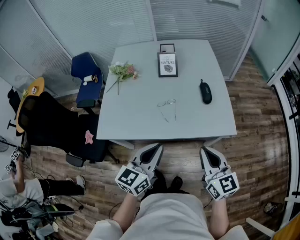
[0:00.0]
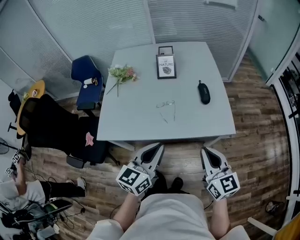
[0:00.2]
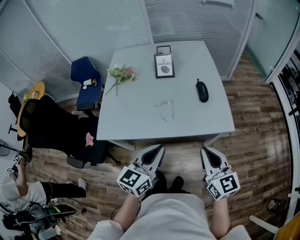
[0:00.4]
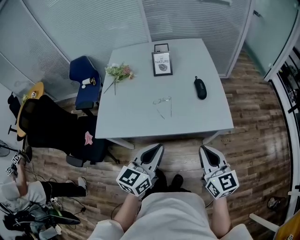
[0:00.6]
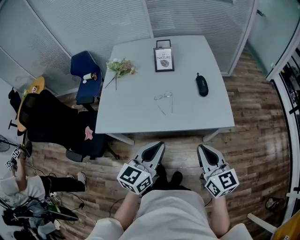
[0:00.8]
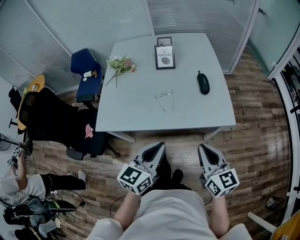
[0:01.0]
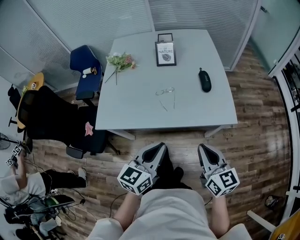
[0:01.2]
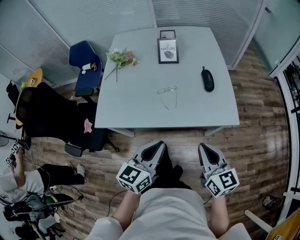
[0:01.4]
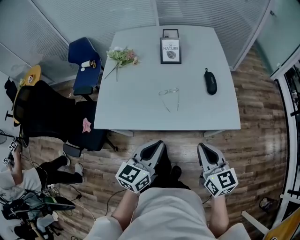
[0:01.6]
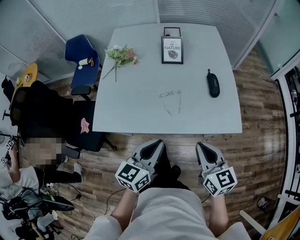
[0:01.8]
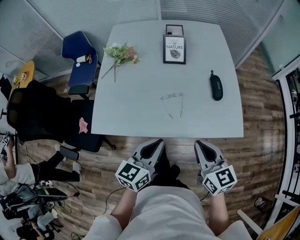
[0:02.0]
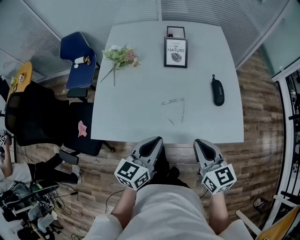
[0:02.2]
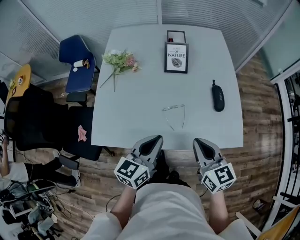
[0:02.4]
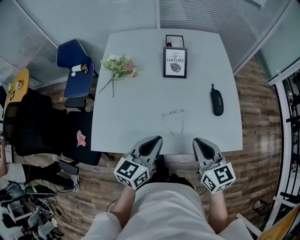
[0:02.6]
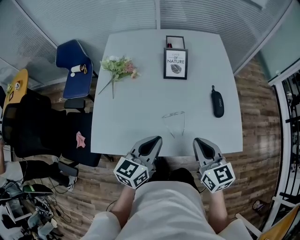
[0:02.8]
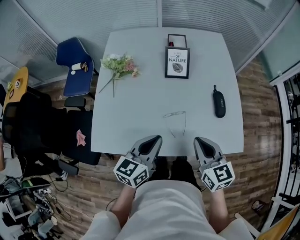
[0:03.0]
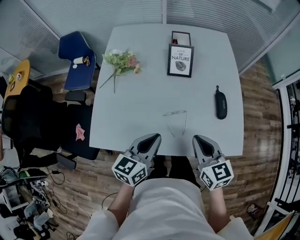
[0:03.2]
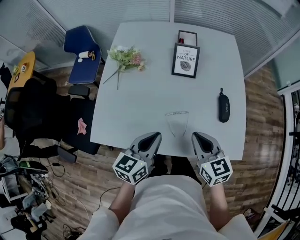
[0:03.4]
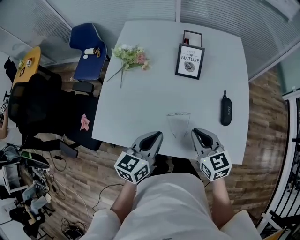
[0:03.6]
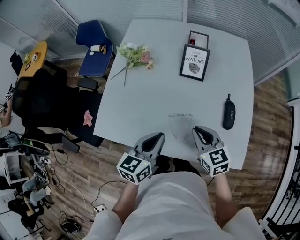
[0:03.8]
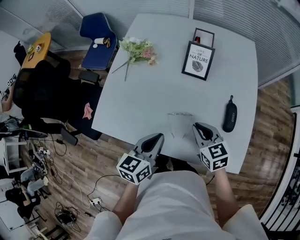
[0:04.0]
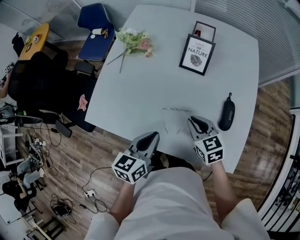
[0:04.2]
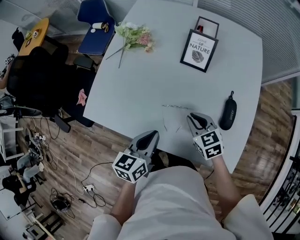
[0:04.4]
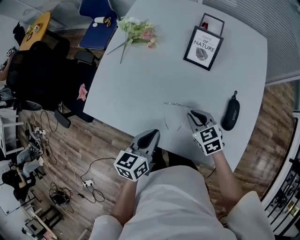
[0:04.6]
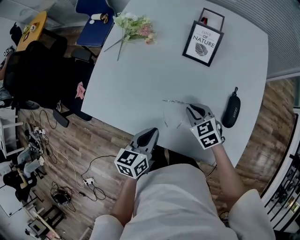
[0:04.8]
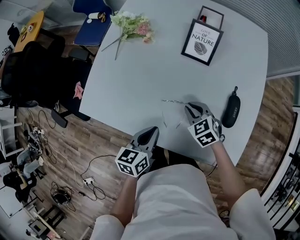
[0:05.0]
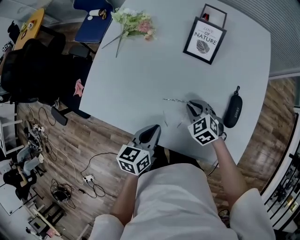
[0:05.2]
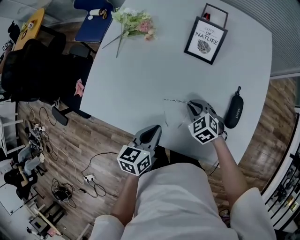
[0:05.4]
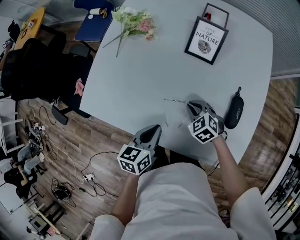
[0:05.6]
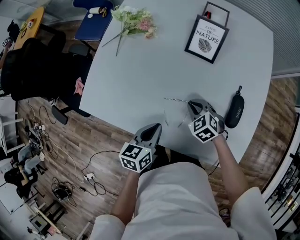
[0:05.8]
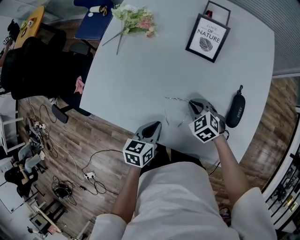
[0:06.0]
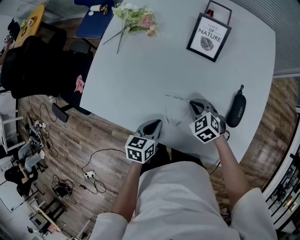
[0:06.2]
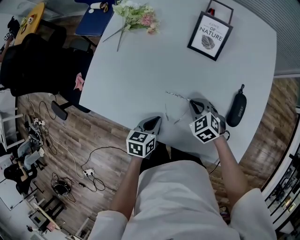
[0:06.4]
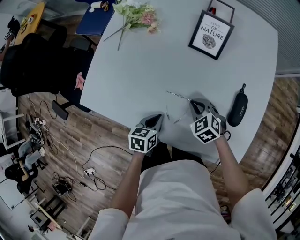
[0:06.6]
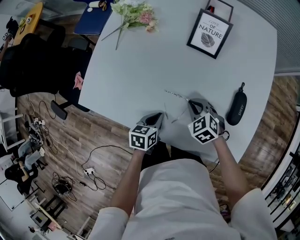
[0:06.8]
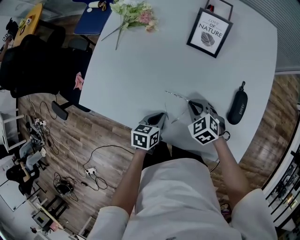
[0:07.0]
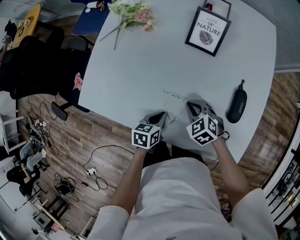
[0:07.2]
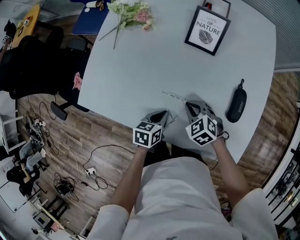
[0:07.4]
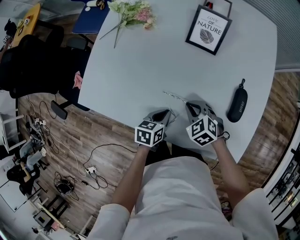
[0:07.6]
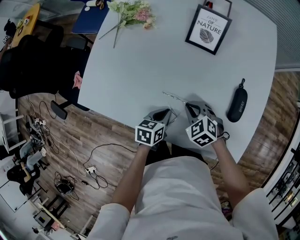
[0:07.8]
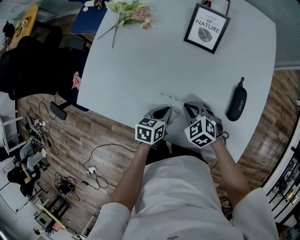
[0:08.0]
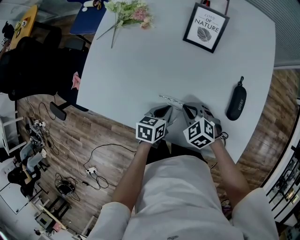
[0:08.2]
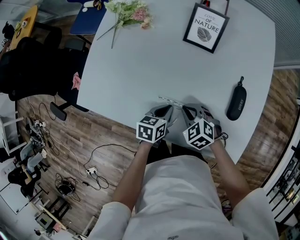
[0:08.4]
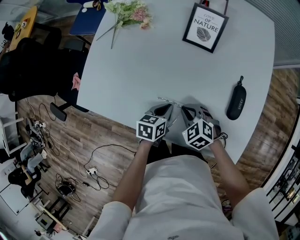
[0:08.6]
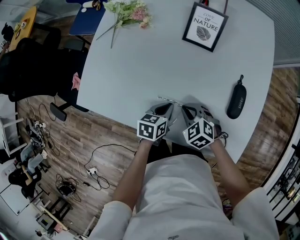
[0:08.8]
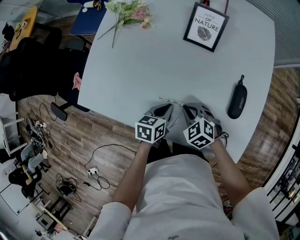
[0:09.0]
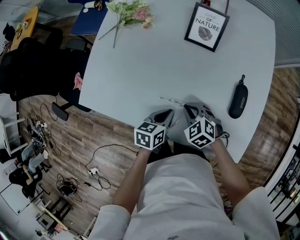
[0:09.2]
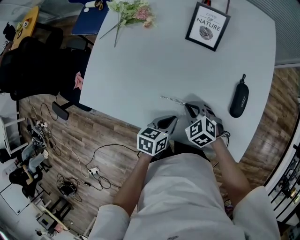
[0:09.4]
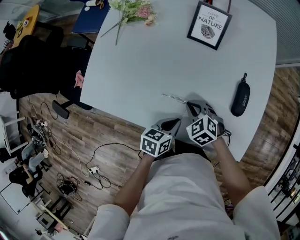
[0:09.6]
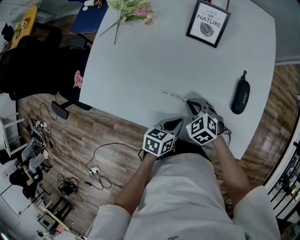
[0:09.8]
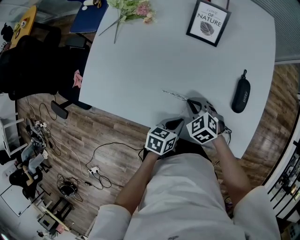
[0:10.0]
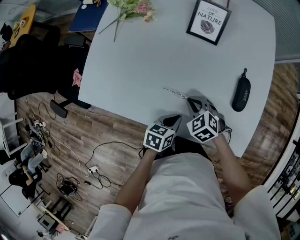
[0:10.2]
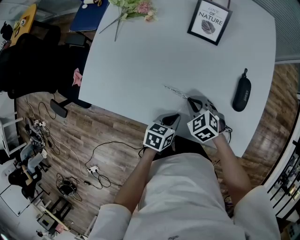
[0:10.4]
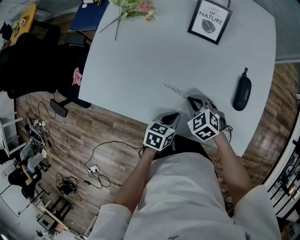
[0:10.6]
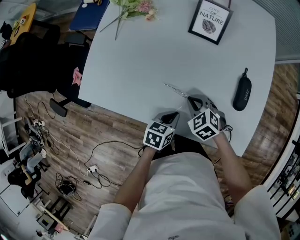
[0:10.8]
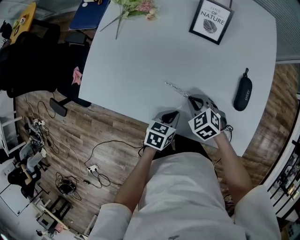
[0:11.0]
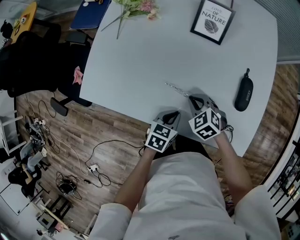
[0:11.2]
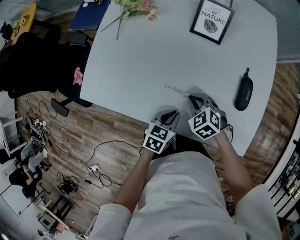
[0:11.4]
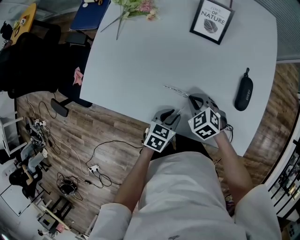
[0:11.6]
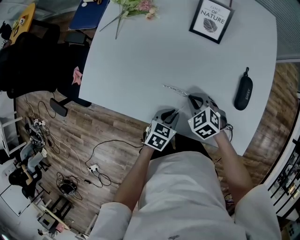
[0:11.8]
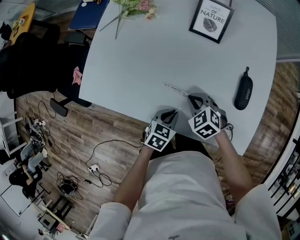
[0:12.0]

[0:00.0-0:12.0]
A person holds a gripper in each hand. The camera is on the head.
0:00.0 to 0:01.6: There are only small adjustments of the grippers.
0:01.6 to 0:03.0: Both grippers travel together forward, some 20 cm.
0:03.0 to 0:04.4: The left gripper is displaced downward by some 5 cm, and turns by approximately 30 degrees. Meanwhile the right gripper is displaced downward and forward by some 20 cm, and turns by approximately 30 degrees.
0:04.4 to 0:06.0: The grippers both shift downward by about 10 cm. The right gripper rotates some 30 degrees.
0:06.0 to 0:07.6: The left gripper is displaced downward by approximately 5 cm.
0:07.6 to 0:09.0: The grippers move only a little.
0:09.0 to 0:10.4: The left gripper travels backward by about 10 cm.
0:10.4 to 0:12.0: The grippers make only small movements.

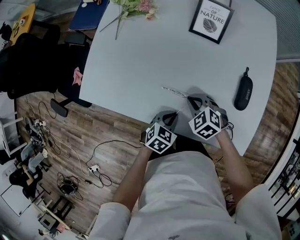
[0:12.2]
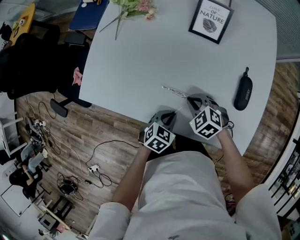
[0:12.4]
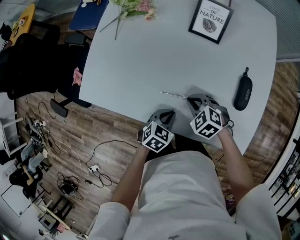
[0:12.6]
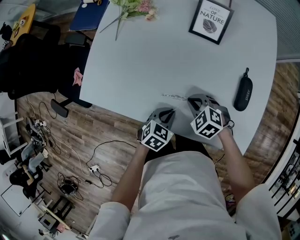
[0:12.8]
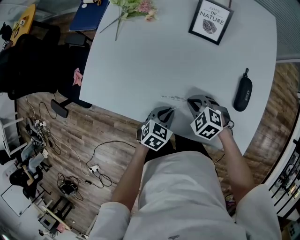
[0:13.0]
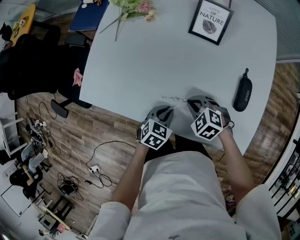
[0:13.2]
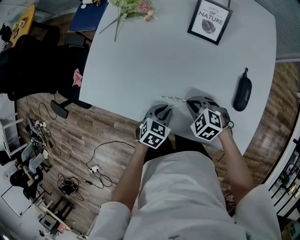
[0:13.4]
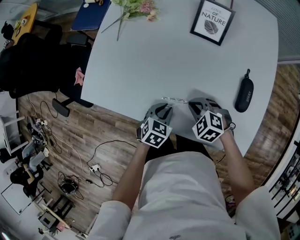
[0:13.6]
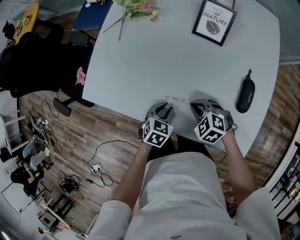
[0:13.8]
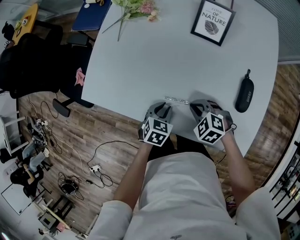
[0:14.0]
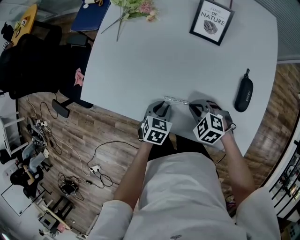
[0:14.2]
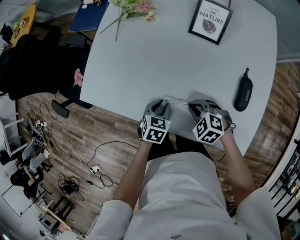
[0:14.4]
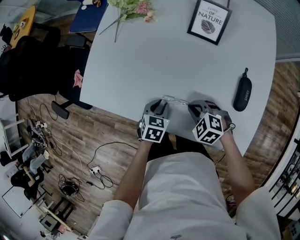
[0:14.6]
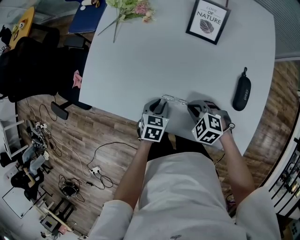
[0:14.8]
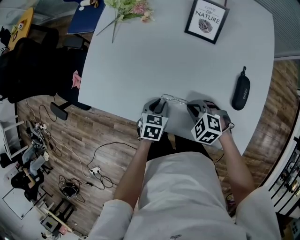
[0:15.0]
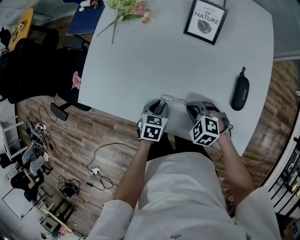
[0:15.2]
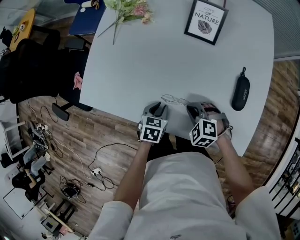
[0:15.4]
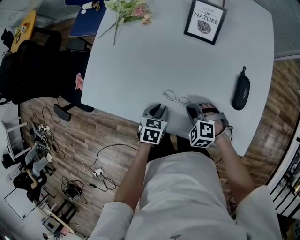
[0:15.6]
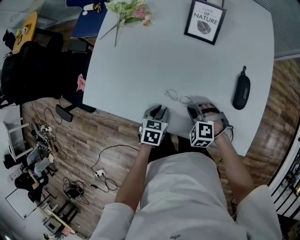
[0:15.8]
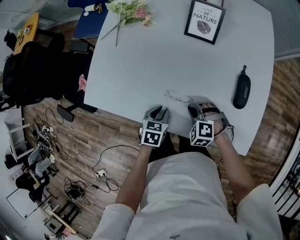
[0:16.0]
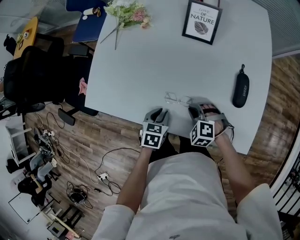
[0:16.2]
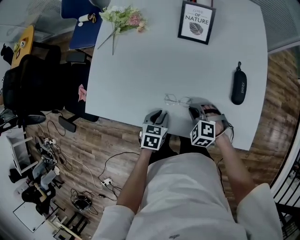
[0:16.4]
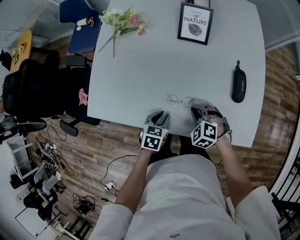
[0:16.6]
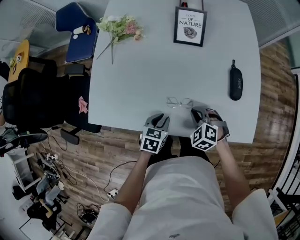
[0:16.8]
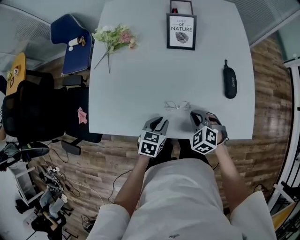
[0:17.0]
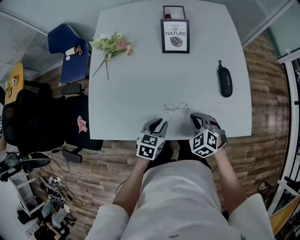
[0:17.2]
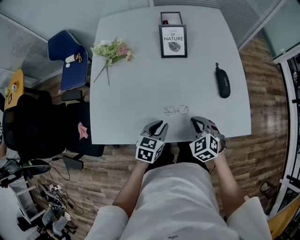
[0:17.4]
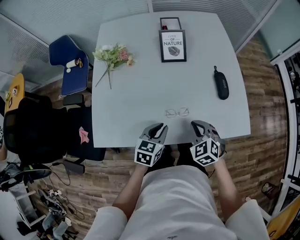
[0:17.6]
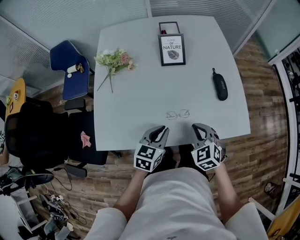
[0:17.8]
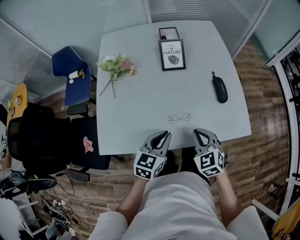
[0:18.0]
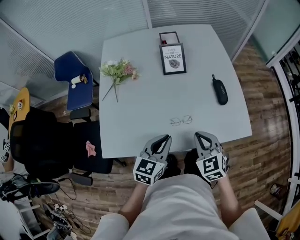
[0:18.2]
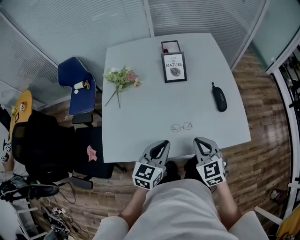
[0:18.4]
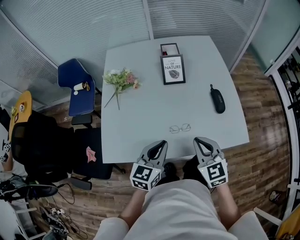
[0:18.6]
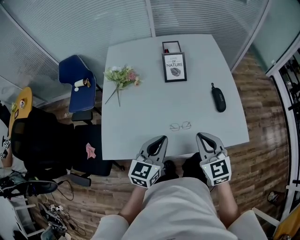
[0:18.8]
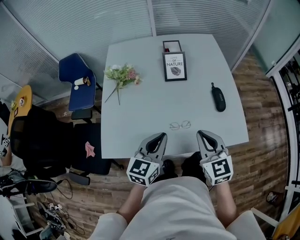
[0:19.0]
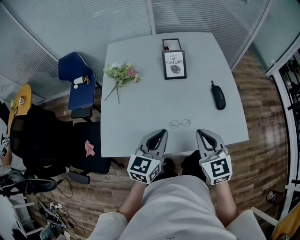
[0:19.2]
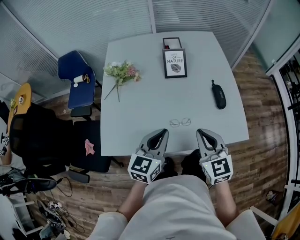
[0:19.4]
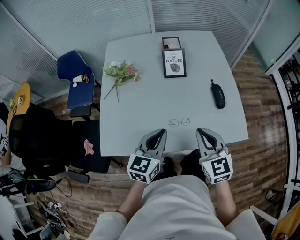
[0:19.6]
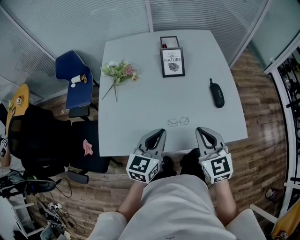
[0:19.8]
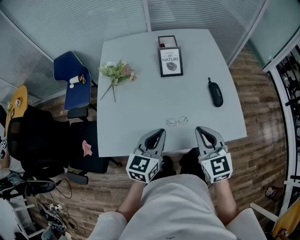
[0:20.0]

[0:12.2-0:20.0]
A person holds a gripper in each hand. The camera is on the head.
0:12.2 to 0:13.8: The left gripper moves roughly 5 cm.
0:13.8 to 0:15.4: The grippers stay close to where they were, moving slightly.
0:15.4 to 0:16.8: The right gripper rotates about 20 degrees.
0:16.8 to 0:18.4: The left gripper is displaced upward by about 20 cm, and tilts its fingers approximately 30 degrees upward. Meanwhile the right gripper moves upward and backward, some 20 cm, and swivels approximately 40 degrees.
0:18.4 to 0:20.0: The right gripper moves upward, some 5 cm.

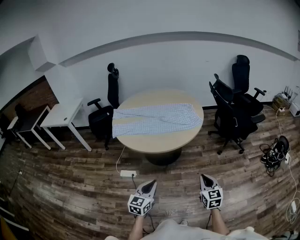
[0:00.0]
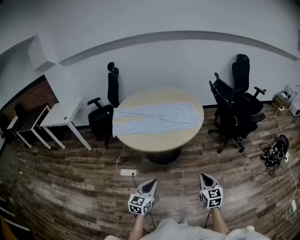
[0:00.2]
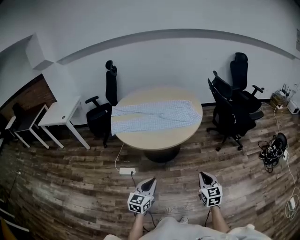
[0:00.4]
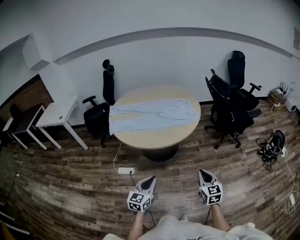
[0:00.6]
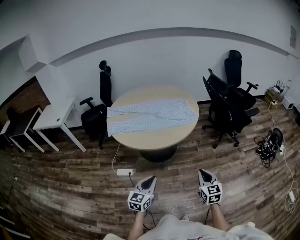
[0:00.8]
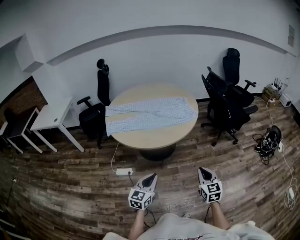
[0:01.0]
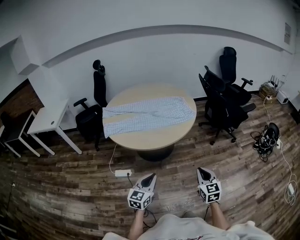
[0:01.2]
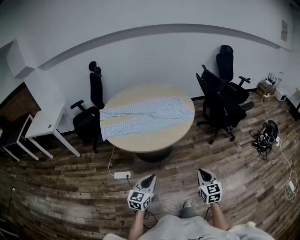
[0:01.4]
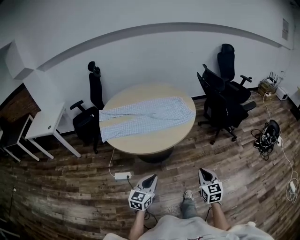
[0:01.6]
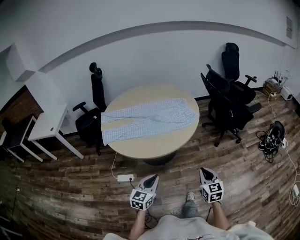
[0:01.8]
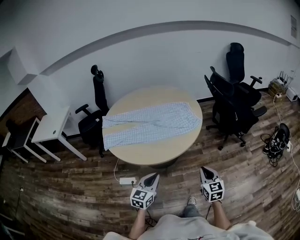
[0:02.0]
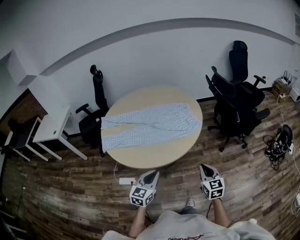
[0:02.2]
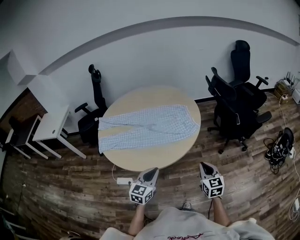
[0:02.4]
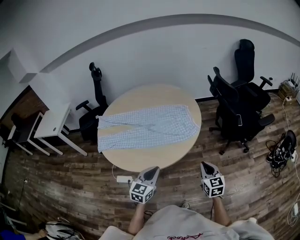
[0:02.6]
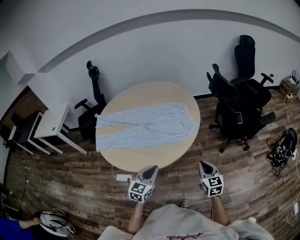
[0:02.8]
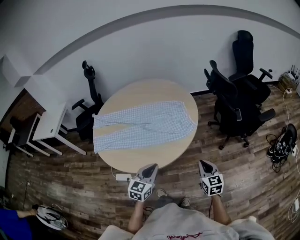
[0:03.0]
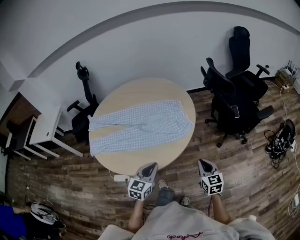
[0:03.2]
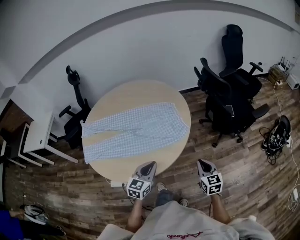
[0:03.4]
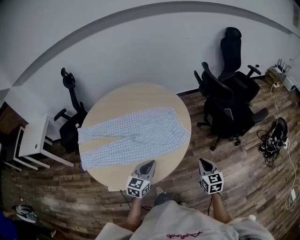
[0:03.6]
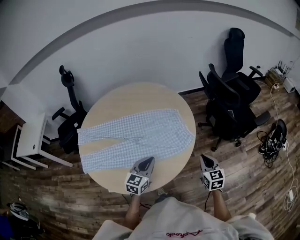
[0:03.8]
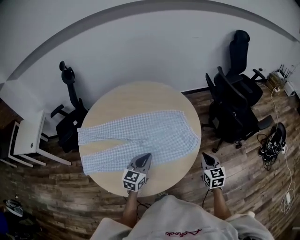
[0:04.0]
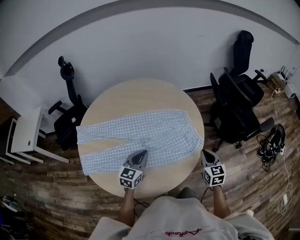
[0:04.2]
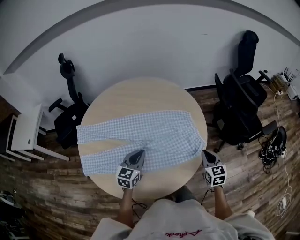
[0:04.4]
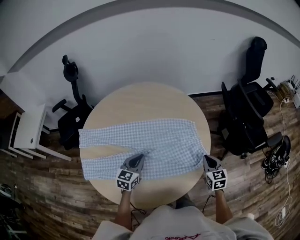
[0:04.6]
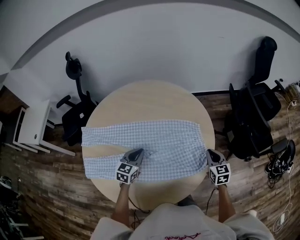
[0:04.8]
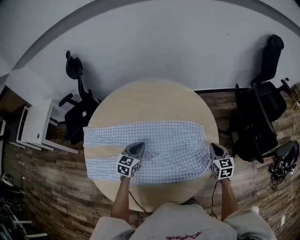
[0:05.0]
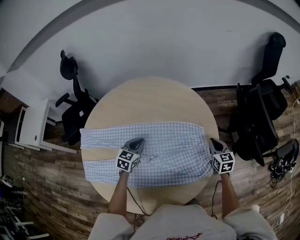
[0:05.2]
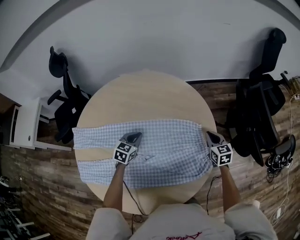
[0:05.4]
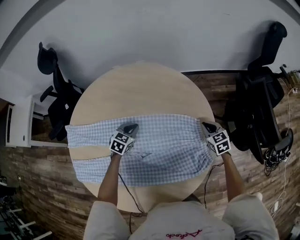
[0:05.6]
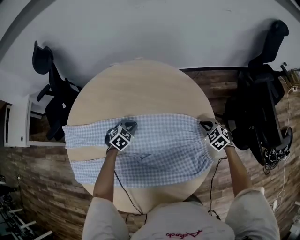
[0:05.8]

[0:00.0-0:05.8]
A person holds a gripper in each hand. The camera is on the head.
0:00.0 to 0:01.4: The left gripper moves approximately 5 cm. Meanwhile the right gripper heads to the left, covering approximately 5 cm.
0:01.4 to 0:02.8: Both grippers move forward, about 30 cm.
0:02.8 to 0:04.4: The right gripper shifts approximately 25 cm forward, while the left gripper goes about 35 cm forward and to the left.
0:04.4 to 0:05.8: The two grippers go some 35 cm forward and downward. The left gripper tips its fingers downward by some 40 degrees. The right gripper turns by roughly 50 degrees.
